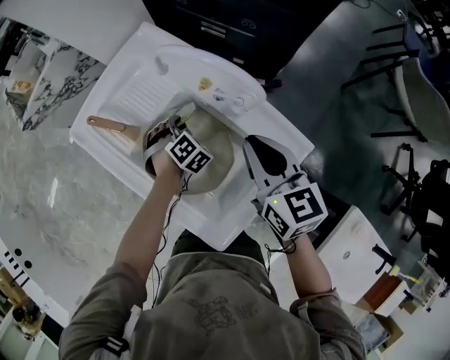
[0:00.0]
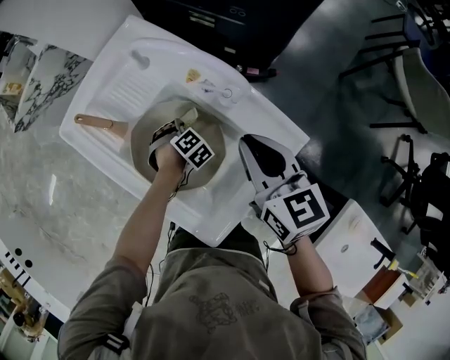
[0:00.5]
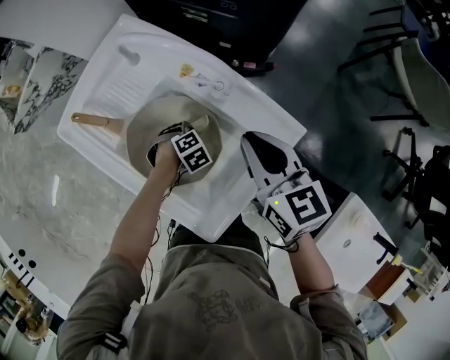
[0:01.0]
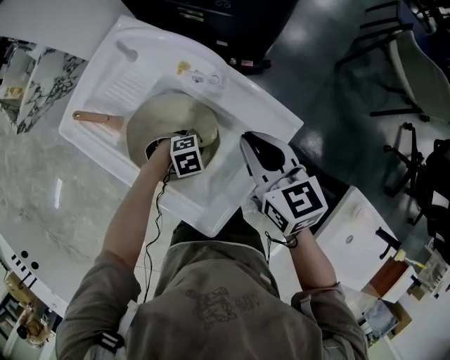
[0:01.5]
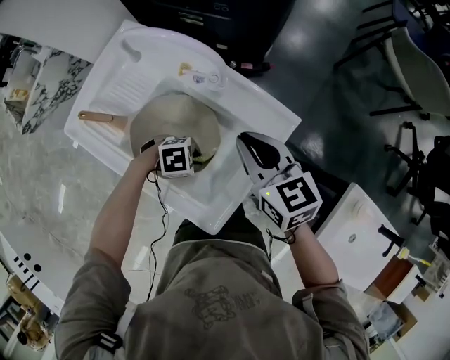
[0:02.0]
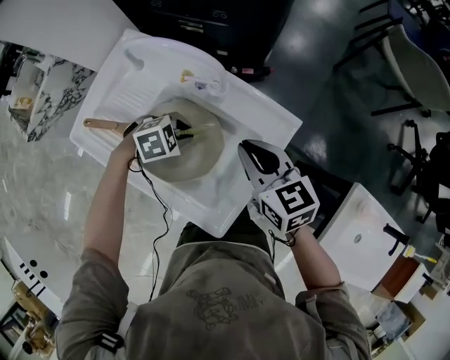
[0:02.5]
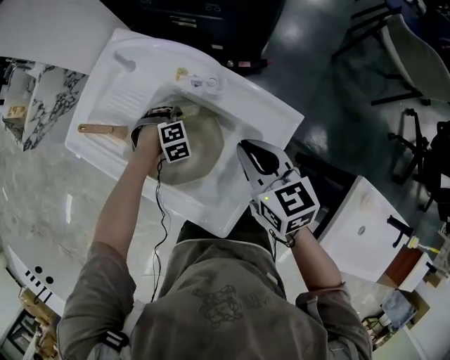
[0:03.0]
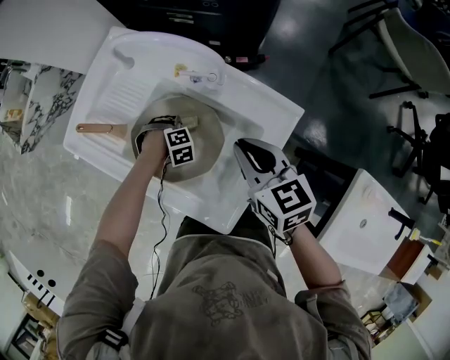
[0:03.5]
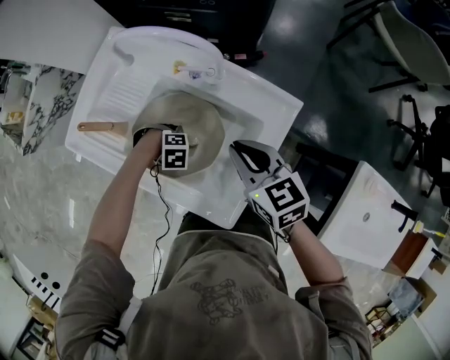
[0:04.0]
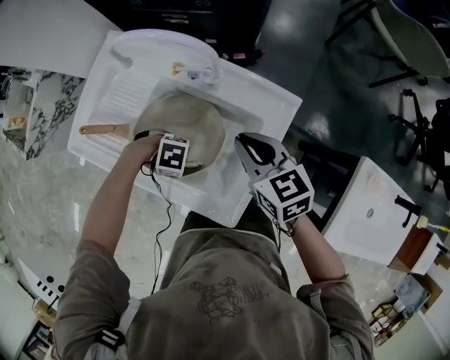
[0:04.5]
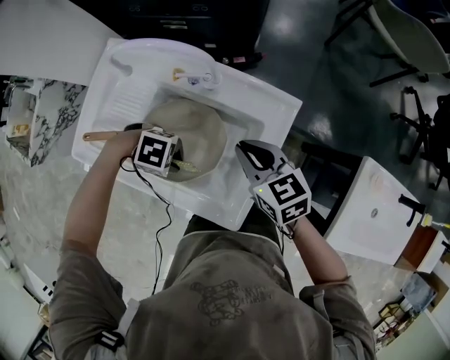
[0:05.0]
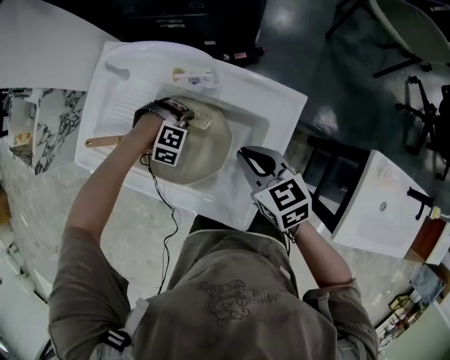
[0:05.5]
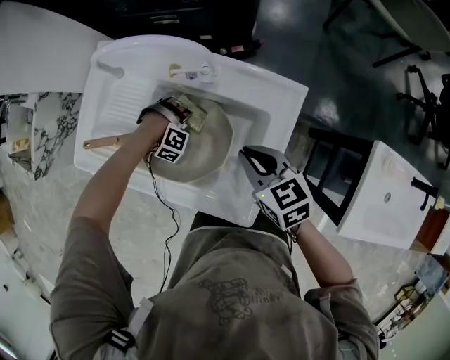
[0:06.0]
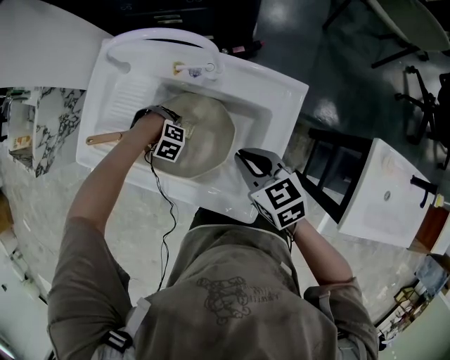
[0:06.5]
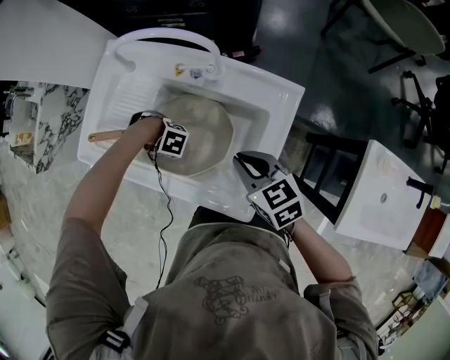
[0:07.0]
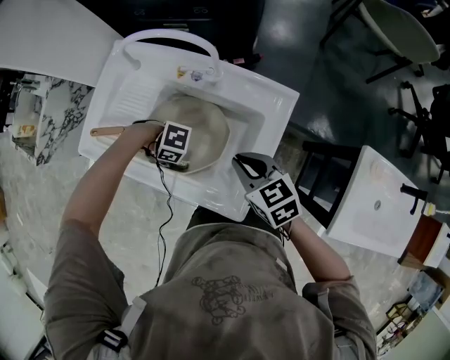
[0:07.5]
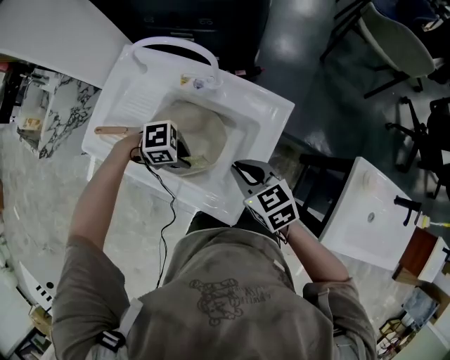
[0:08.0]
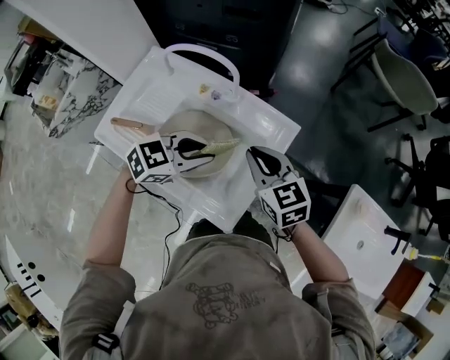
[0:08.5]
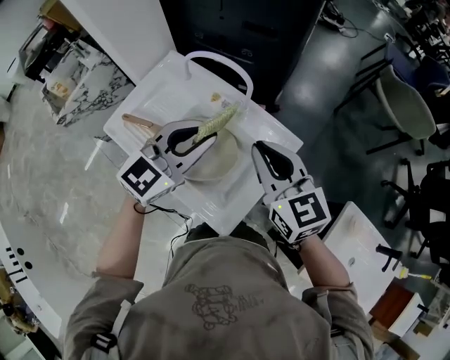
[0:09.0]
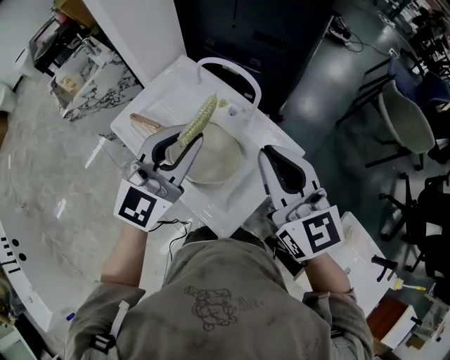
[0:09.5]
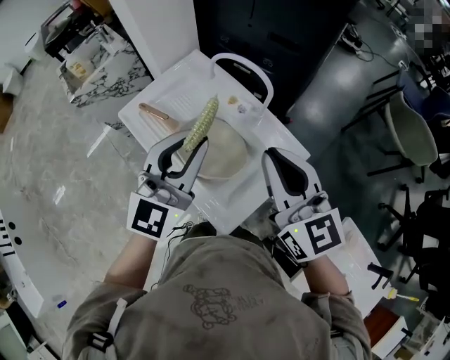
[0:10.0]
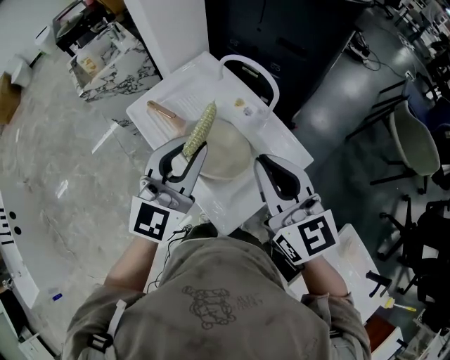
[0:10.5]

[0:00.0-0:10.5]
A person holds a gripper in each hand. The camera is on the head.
0:00.0 to 0:02.0: The left gripper changes place by roughly 20 cm, and rotates approximately 70 degrees; the right gripper ends up roughly 5 cm from where it was.
0:02.0 to 0:04.0: The left gripper rotates some 30 degrees; the right gripper moves approximately 5 cm.
0:04.0 to 0:06.5: The left gripper travels upward and back again, roughly 10 cm each way, and rotates roughly 30 degrees. Meanwhile the right gripper shifts by roughly 5 cm.
0:06.5 to 0:08.5: The left gripper heads upward, covering approximately 30 cm, and tips its fingers upward by roughly 50 degrees; the right gripper is displaced upward by some 10 cm.
0:08.5 to 0:10.5: Both grippers travel together upward, about 20 cm. The right gripper changes its angle by some 30 degrees. The left gripper tips its fingers upward by some 30 degrees.

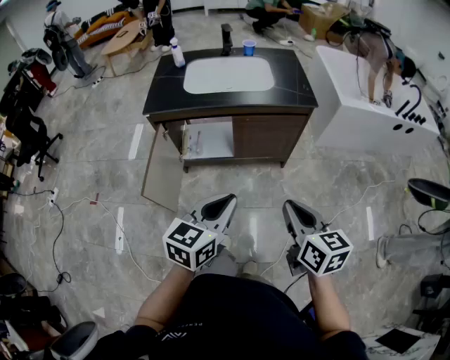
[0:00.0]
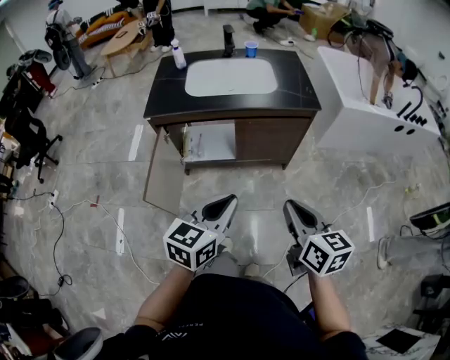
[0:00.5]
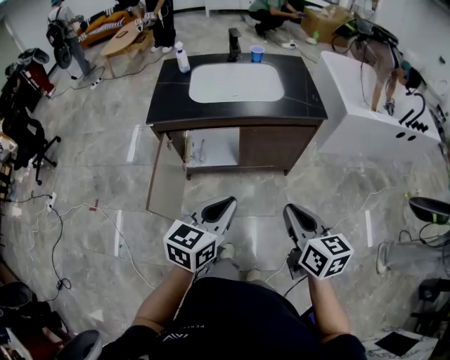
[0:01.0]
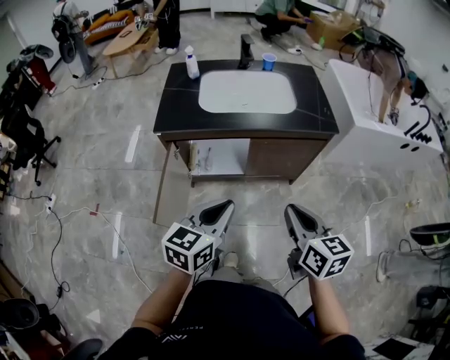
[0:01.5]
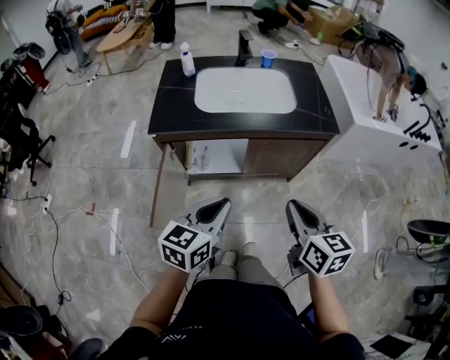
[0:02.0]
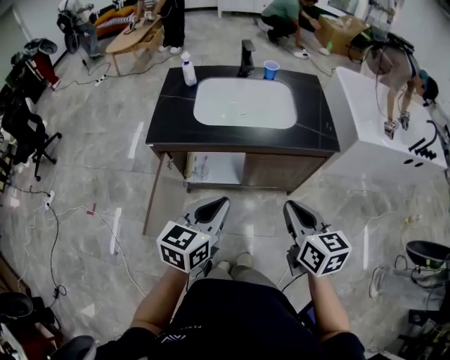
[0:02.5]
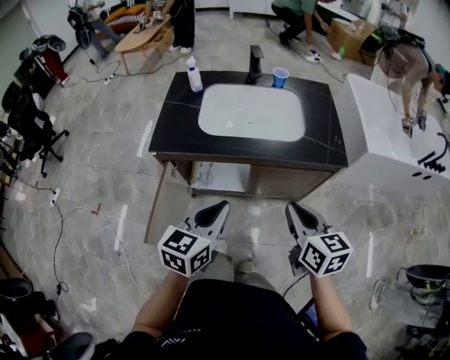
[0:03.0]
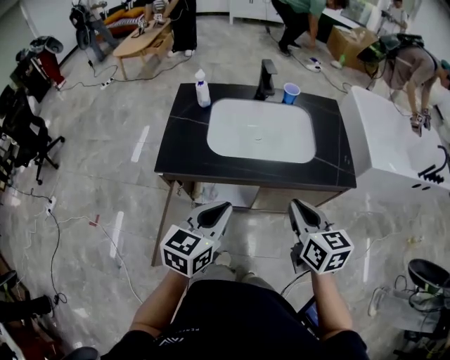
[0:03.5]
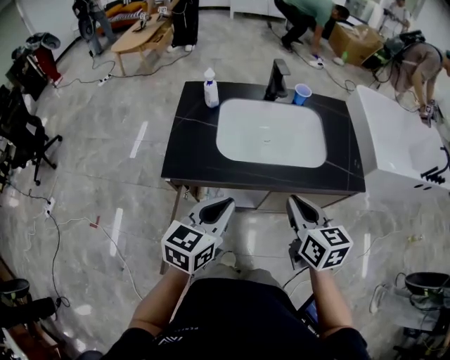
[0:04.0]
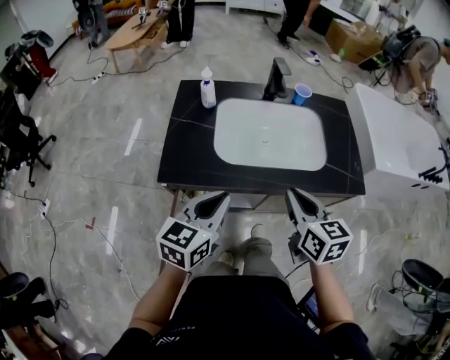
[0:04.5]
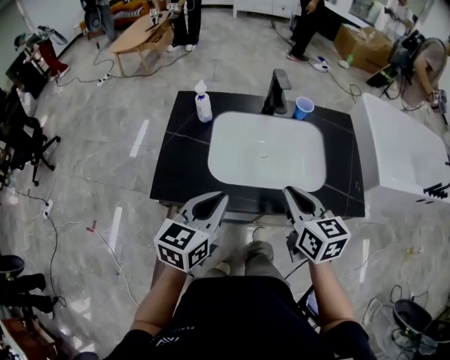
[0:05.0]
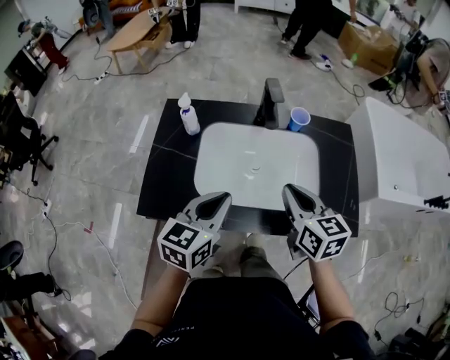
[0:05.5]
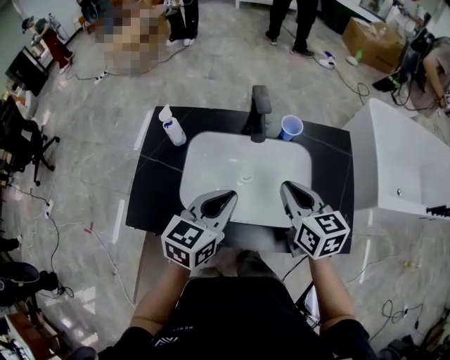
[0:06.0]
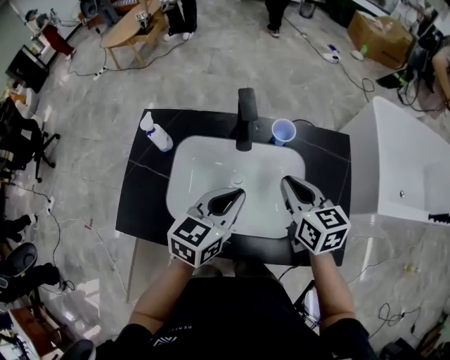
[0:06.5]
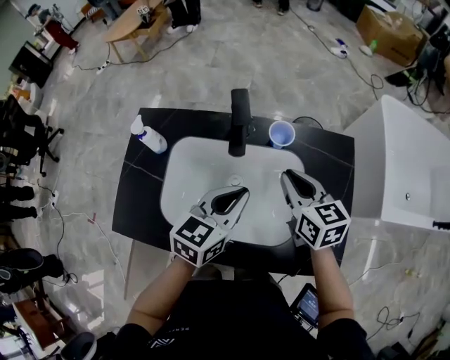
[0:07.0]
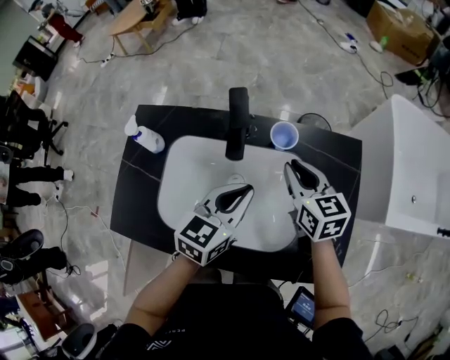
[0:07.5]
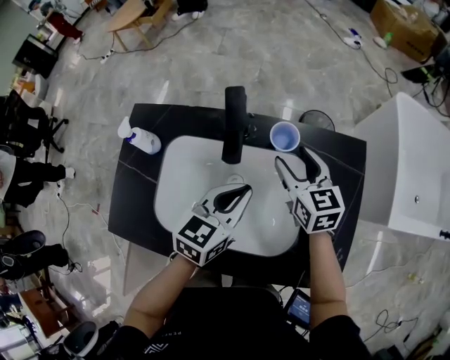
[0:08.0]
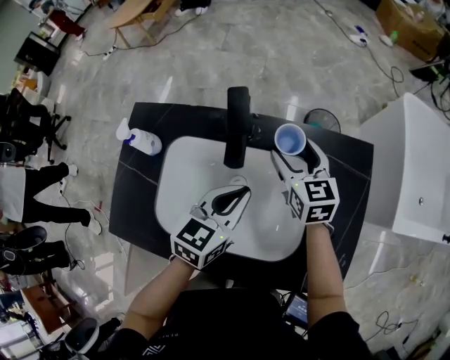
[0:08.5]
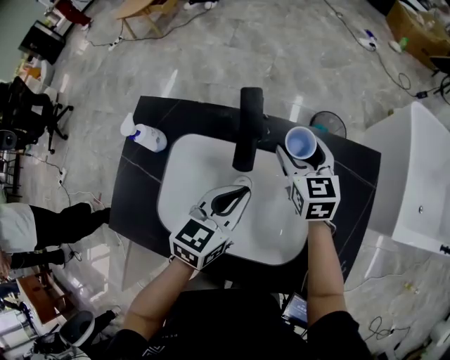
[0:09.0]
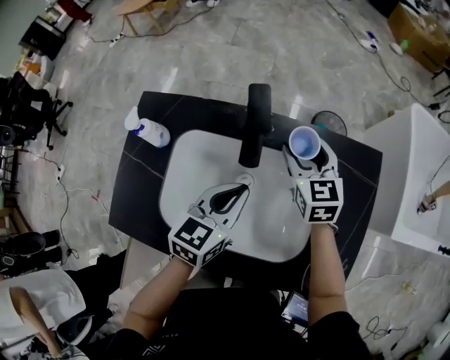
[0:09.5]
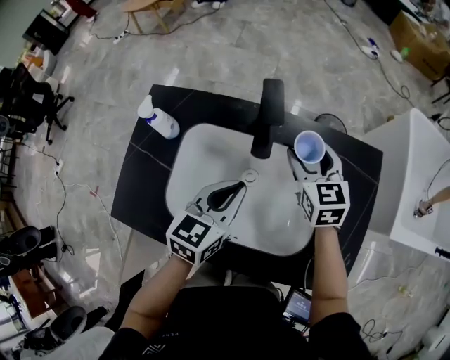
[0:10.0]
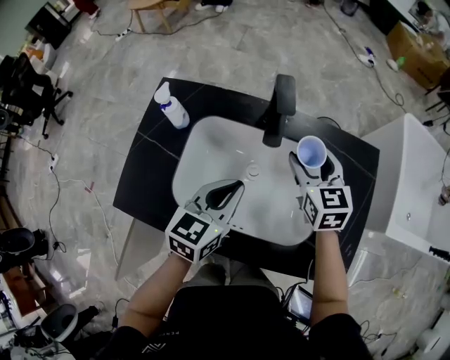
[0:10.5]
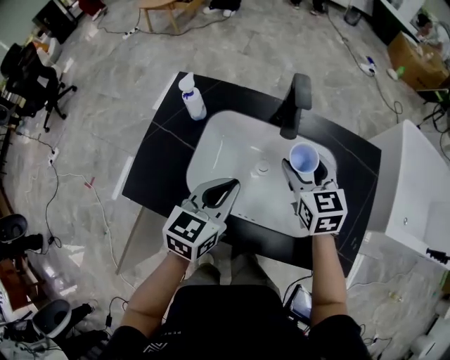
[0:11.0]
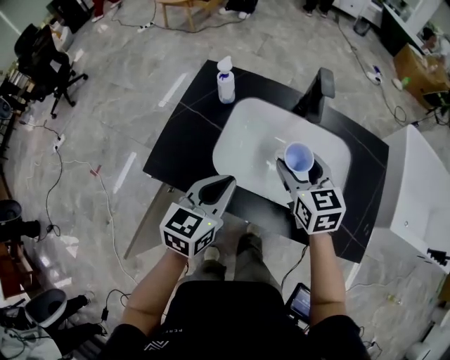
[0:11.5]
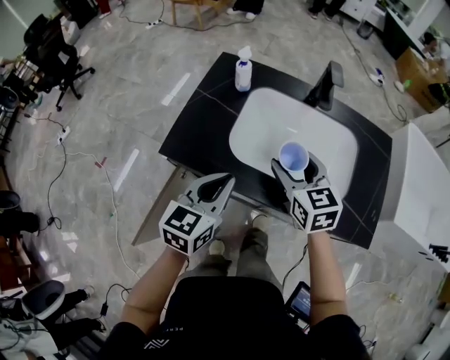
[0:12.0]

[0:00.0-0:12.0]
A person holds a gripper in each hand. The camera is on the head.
0:00.0 to 0:02.0: Both grippers travel together forward and to the left, roughly 15 cm.
0:02.0 to 0:04.0: Both grippers move forward, some 20 cm.
0:04.0 to 0:06.0: The right gripper shifts some 25 cm forward; the left gripper goes about 25 cm forward and to the right.
0:06.0 to 0:08.0: The right gripper goes approximately 20 cm forward and downward, and opens up, while the left gripper travels forward, to the right and downward by about 15 cm.
0:08.0 to 0:10.0: The left gripper heads to the left, covering roughly 5 cm.
0:10.0 to 0:12.0: Both grippers travel together backward and to the left, about 30 cm.

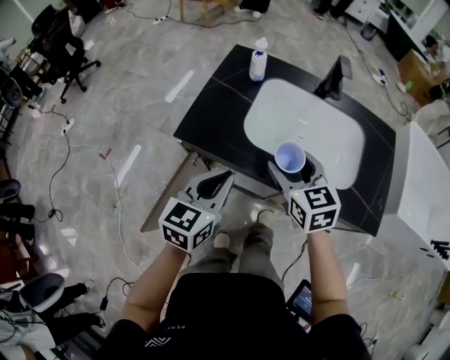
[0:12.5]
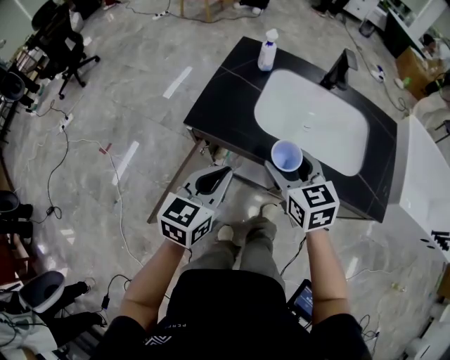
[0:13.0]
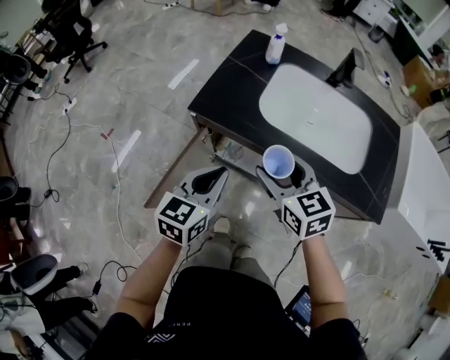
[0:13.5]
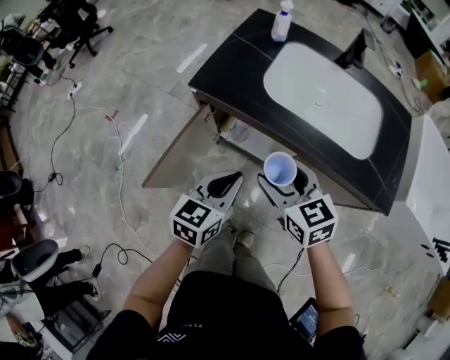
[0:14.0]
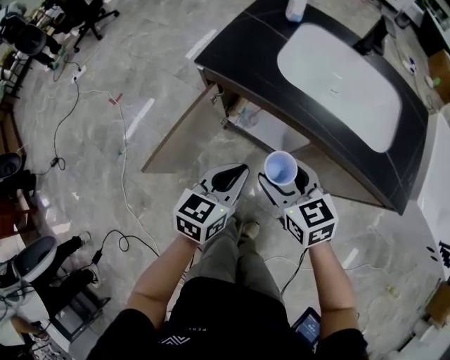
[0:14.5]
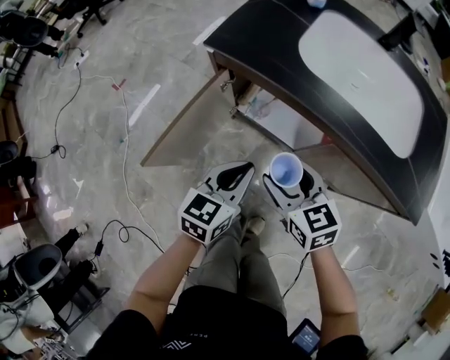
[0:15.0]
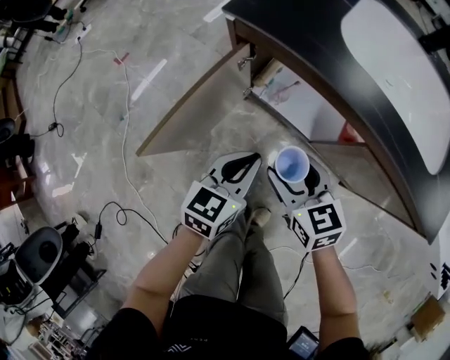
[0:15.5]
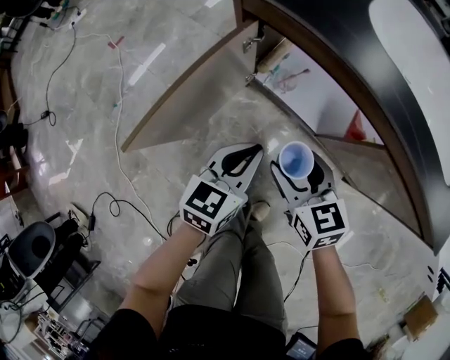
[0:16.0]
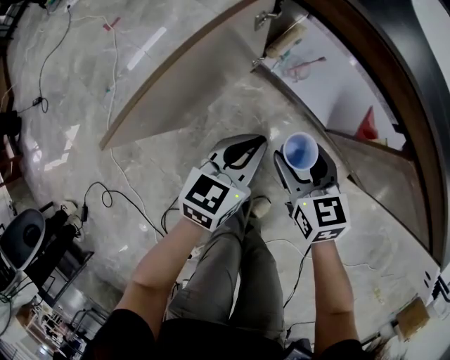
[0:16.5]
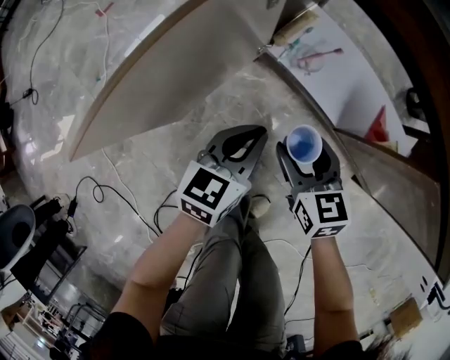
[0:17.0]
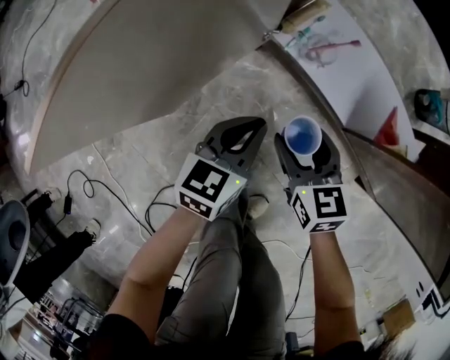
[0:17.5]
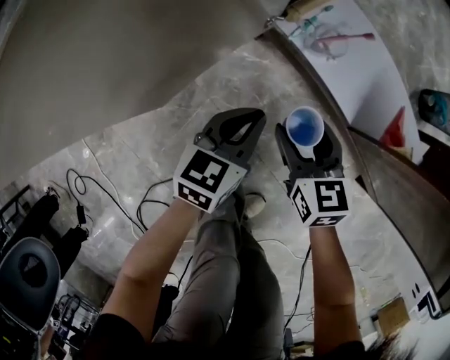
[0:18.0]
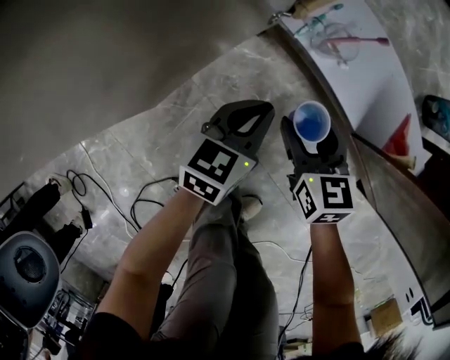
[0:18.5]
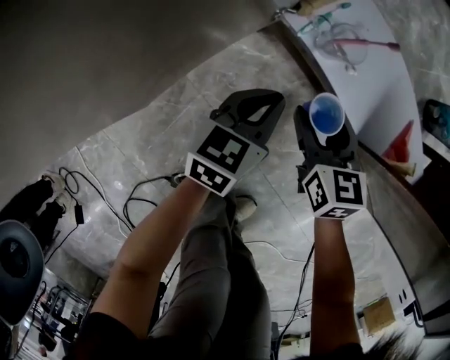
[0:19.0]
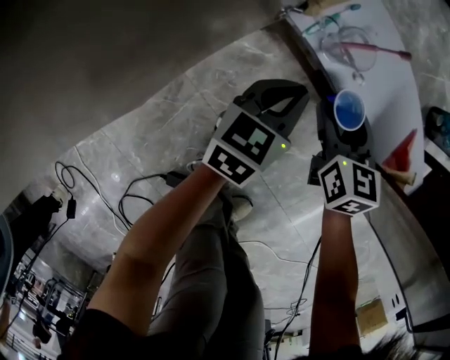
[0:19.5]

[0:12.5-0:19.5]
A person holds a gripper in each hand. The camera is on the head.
0:12.5 to 0:14.5: The right gripper goes roughly 20 cm backward, downward and to the left. Meanwhile the left gripper travels backward and downward by roughly 15 cm.
0:14.5 to 0:16.0: The grippers both shift downward by about 20 cm.
0:16.0 to 0:17.5: The grippers both shift downward by some 20 cm.
0:17.5 to 0:19.5: The left gripper travels downward, forward and to the right by roughly 15 cm. Meanwhile the right gripper travels forward, downward and to the right by some 15 cm.
